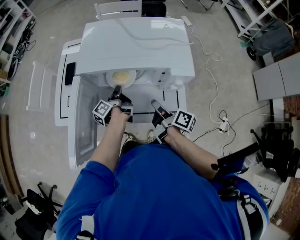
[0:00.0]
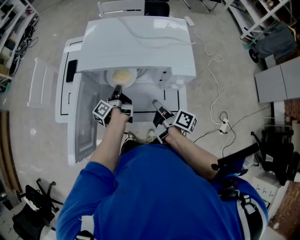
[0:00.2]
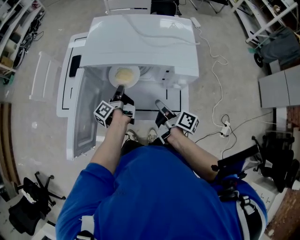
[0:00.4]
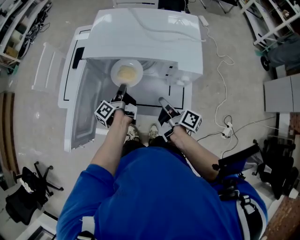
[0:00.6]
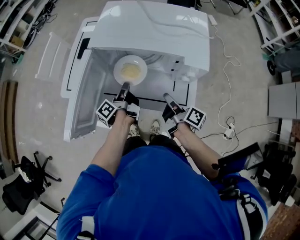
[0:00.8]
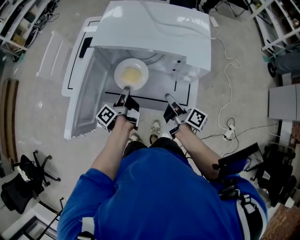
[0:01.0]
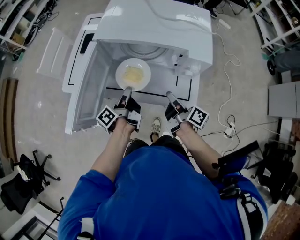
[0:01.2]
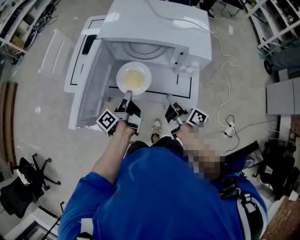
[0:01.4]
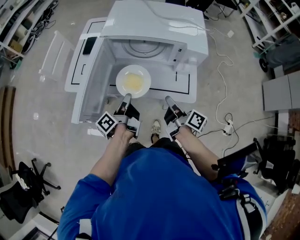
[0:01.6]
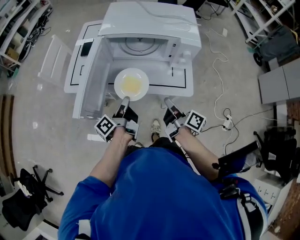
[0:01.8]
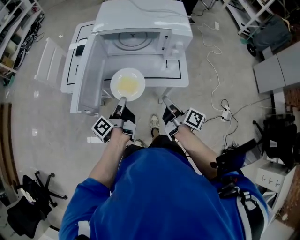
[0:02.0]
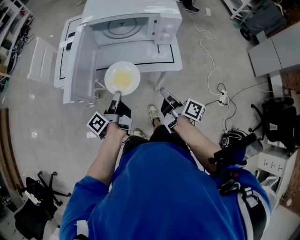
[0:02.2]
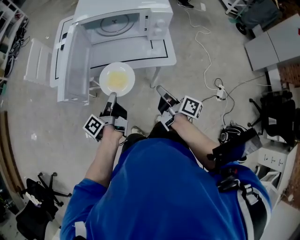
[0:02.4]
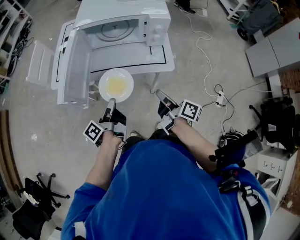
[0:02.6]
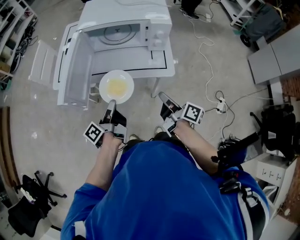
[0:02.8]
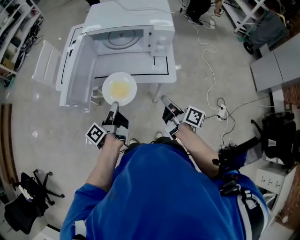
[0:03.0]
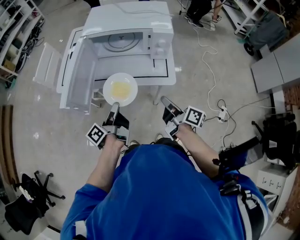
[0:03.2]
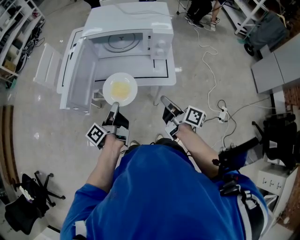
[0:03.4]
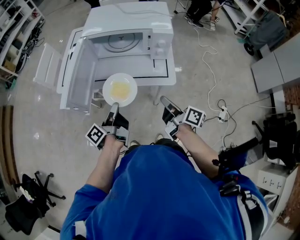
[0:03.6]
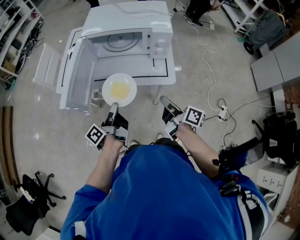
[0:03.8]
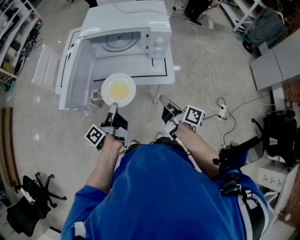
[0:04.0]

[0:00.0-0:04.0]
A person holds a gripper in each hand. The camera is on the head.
0:00.0 to 0:01.4: The left gripper changes place by some 15 cm.
0:01.4 to 0:02.6: The left gripper moves roughly 15 cm.

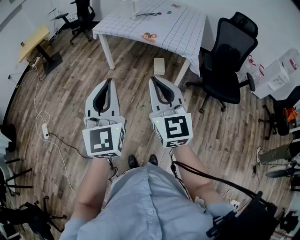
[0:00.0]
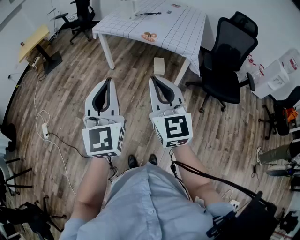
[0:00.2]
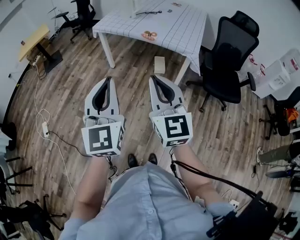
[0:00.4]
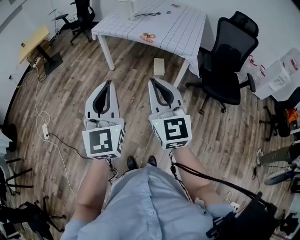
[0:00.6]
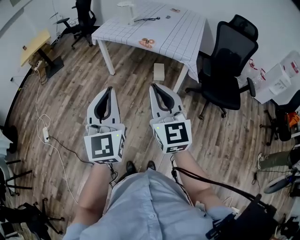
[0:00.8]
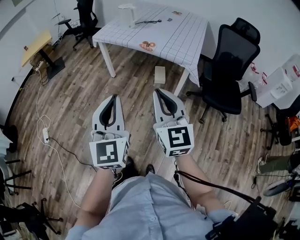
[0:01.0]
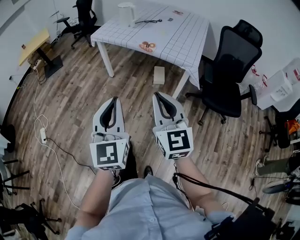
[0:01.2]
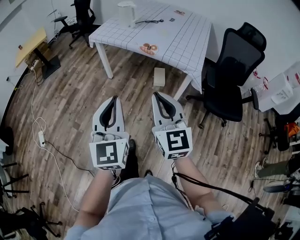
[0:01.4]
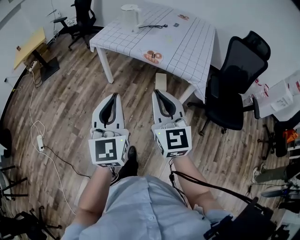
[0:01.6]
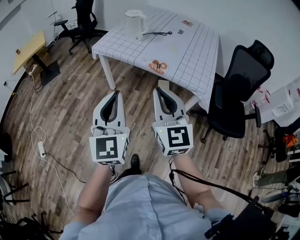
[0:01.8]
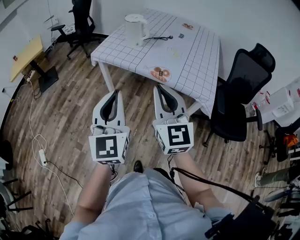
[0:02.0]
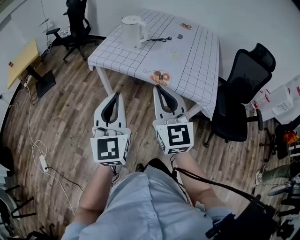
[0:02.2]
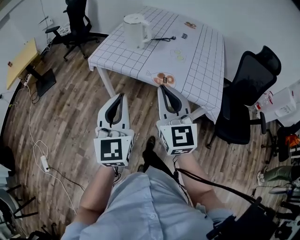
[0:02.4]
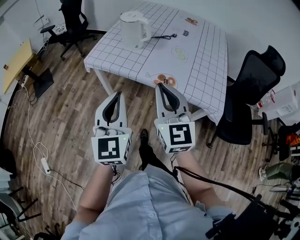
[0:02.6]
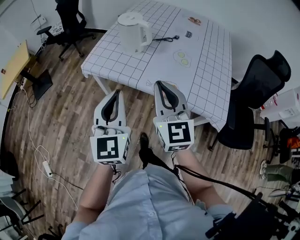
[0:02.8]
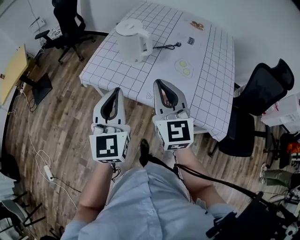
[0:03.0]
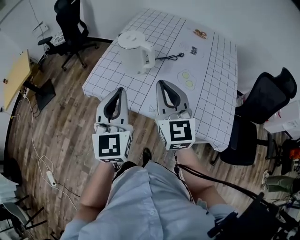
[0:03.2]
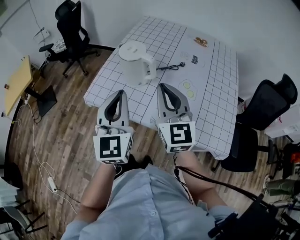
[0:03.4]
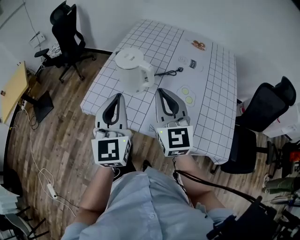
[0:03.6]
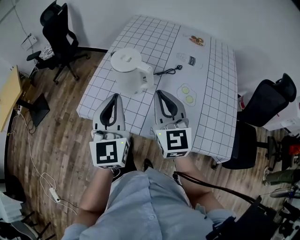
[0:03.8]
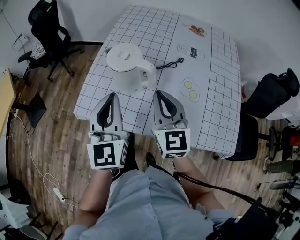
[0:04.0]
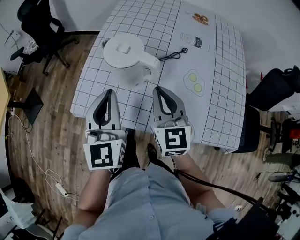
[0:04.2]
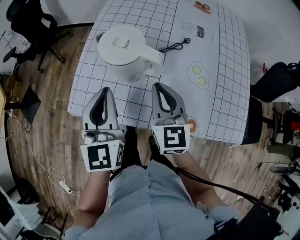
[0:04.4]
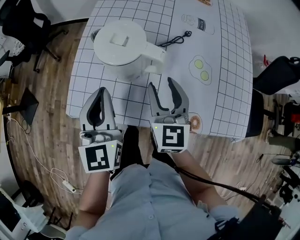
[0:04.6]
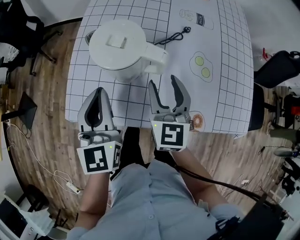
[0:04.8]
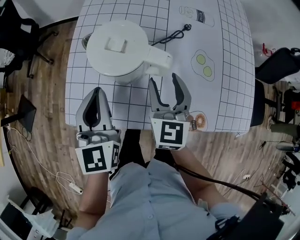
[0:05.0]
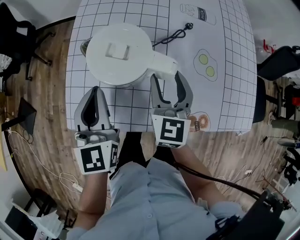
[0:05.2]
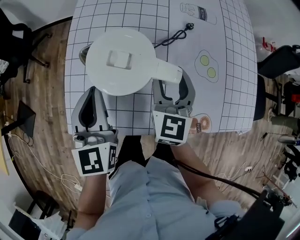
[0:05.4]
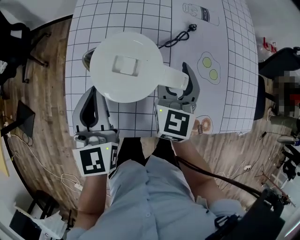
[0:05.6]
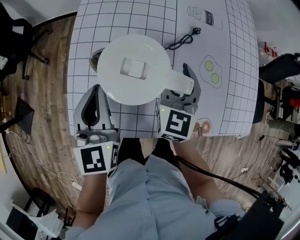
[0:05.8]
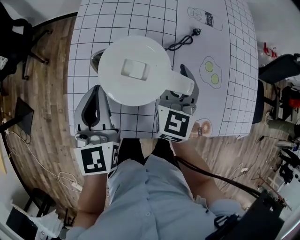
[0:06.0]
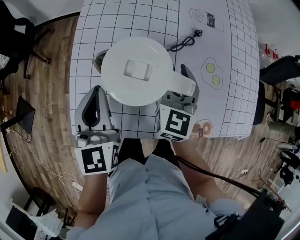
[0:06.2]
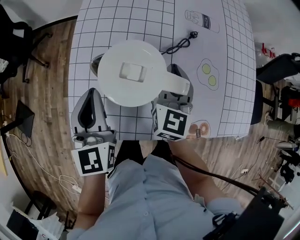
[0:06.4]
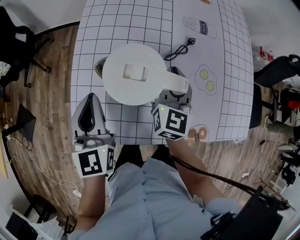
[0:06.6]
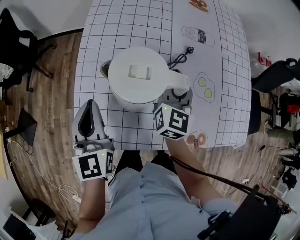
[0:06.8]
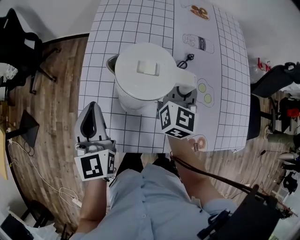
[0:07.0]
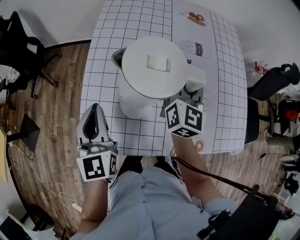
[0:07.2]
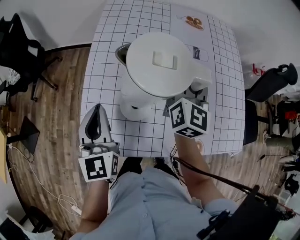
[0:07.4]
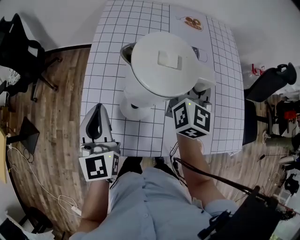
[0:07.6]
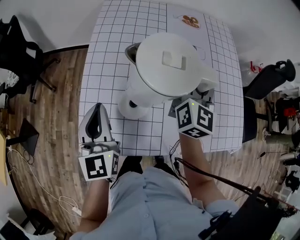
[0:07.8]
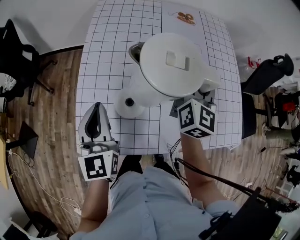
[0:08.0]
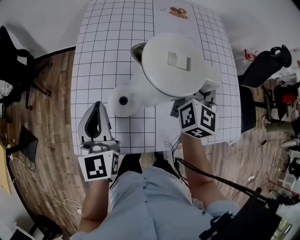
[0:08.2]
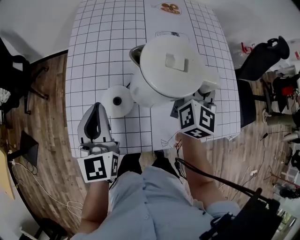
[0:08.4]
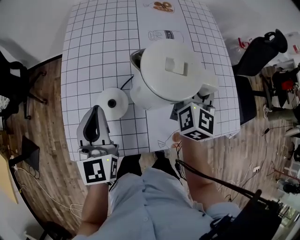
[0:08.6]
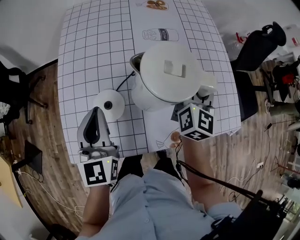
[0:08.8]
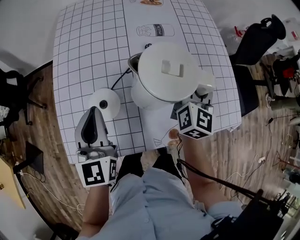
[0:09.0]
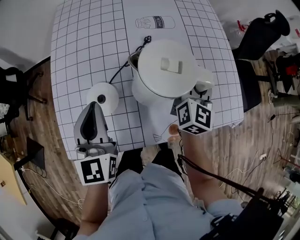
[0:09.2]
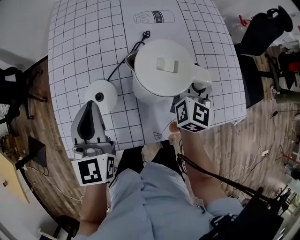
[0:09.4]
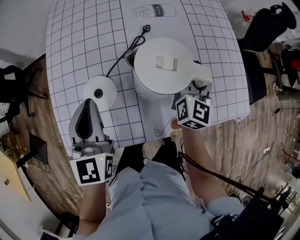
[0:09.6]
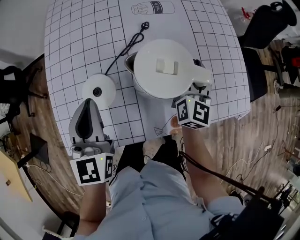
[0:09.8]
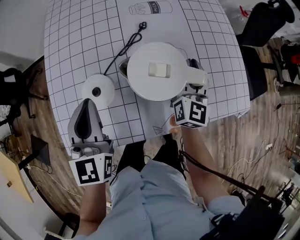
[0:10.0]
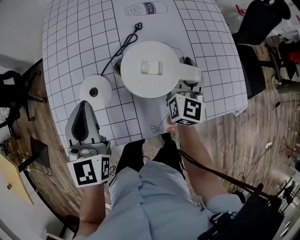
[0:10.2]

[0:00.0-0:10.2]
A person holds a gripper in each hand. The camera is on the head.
0:00.0 to 0:01.4: Both grippers travel together forward and downward, approximately 10 cm.
0:01.4 to 0:03.0: Both grippers are carried forward, roughly 50 cm.
0:03.0 to 0:04.4: The left gripper is displaced forward by about 20 cm. The right gripper is displaced forward and downward by about 20 cm.
0:04.4 to 0:05.8: The right gripper travels forward and downward by some 10 cm, swivels roughly 30 degrees, and opens up. The left gripper shifts some 15 cm forward, downward and to the left.
0:05.8 to 0:07.2: The right gripper moves upward and forward, approximately 10 cm, swivels approximately 20 degrees, and closes its fingers. Meanwhile the left gripper travels upward by roughly 5 cm.
0:07.2 to 0:08.8: The left gripper is displaced to the right by some 10 cm; the right gripper travels to the right by about 20 cm.
0:08.8 to 0:10.2: The right gripper goes approximately 10 cm downward.

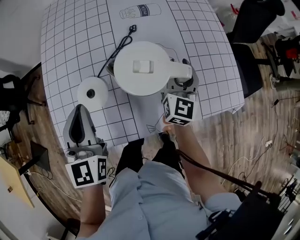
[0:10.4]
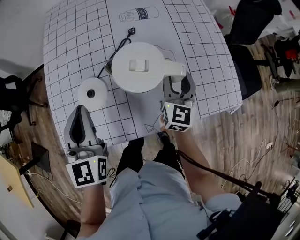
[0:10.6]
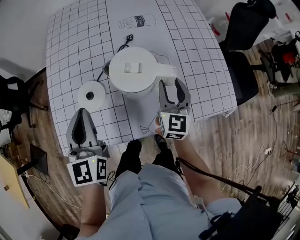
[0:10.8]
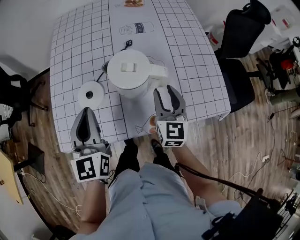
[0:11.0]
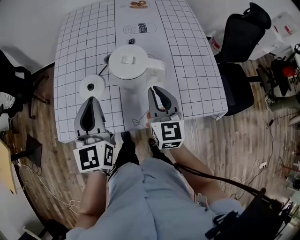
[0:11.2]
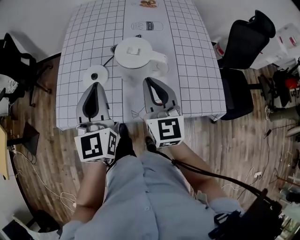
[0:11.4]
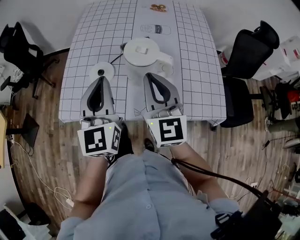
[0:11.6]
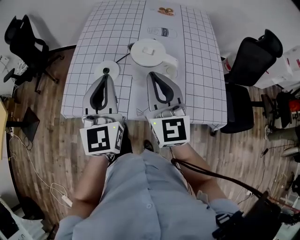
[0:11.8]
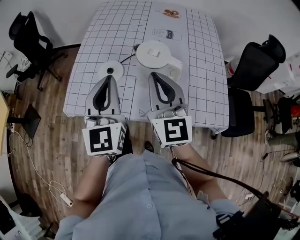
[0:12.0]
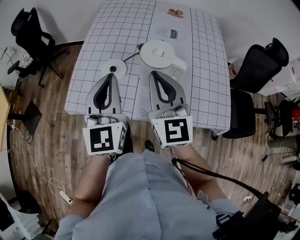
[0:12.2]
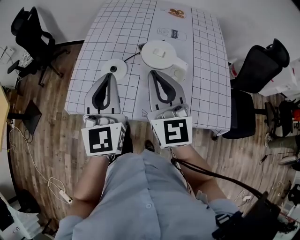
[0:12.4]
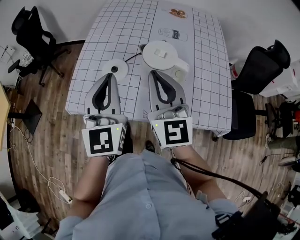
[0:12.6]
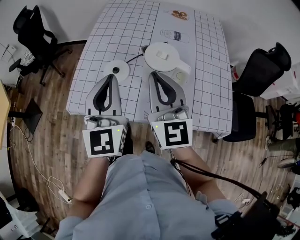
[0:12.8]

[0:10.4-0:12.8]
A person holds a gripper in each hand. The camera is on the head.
0:10.4 to 0:11.6: The left gripper goes about 15 cm backward, upward and to the right. The right gripper goes approximately 25 cm upward, backward and to the left, changes its angle by roughly 40 degrees, and closes up.
0:11.6 to 0:12.8: The right gripper changes place by roughly 5 cm.

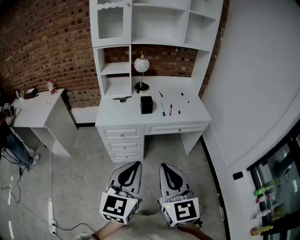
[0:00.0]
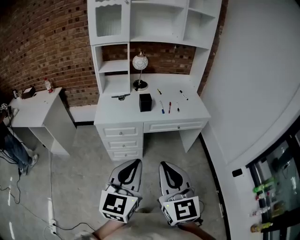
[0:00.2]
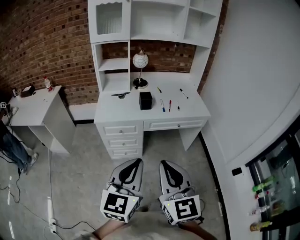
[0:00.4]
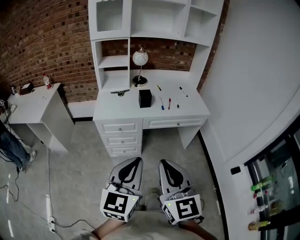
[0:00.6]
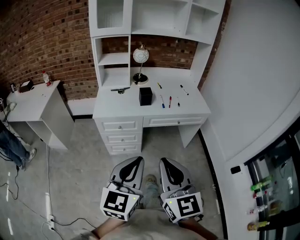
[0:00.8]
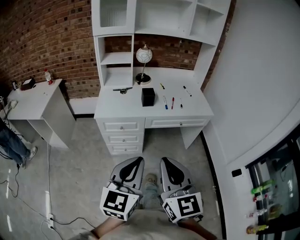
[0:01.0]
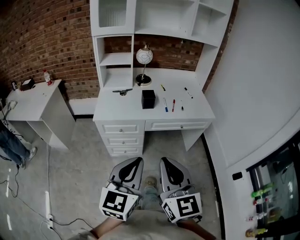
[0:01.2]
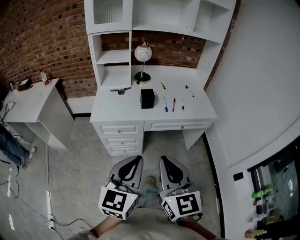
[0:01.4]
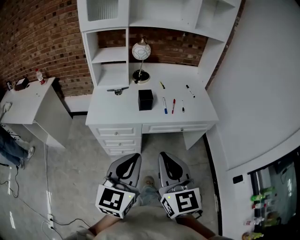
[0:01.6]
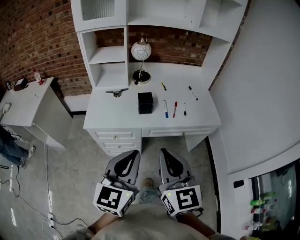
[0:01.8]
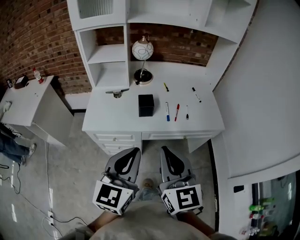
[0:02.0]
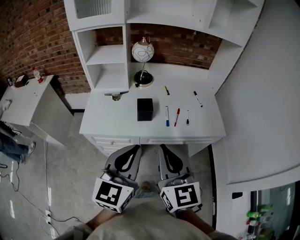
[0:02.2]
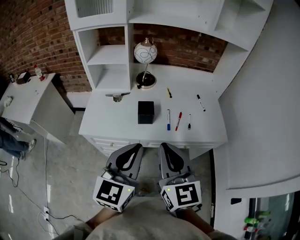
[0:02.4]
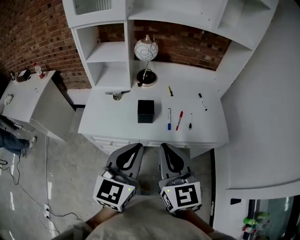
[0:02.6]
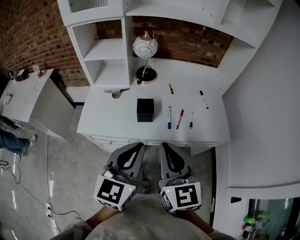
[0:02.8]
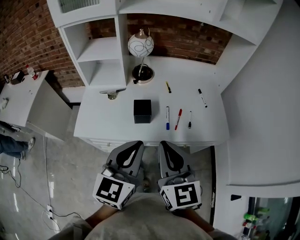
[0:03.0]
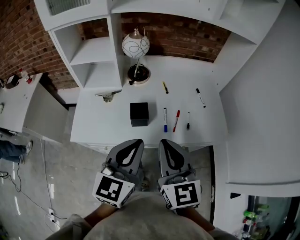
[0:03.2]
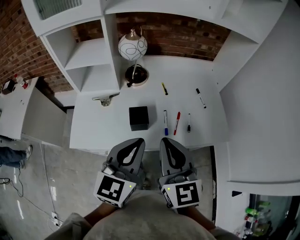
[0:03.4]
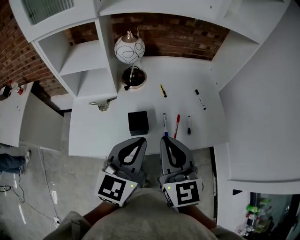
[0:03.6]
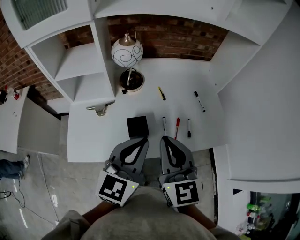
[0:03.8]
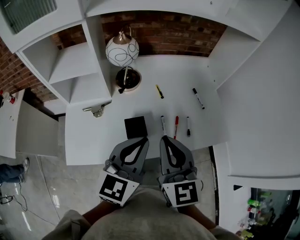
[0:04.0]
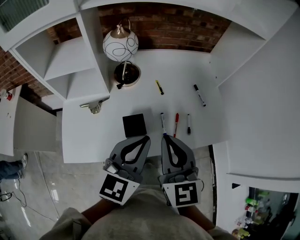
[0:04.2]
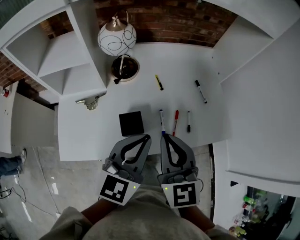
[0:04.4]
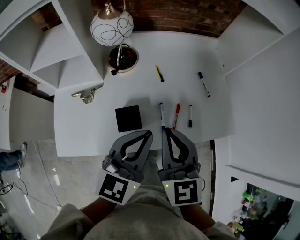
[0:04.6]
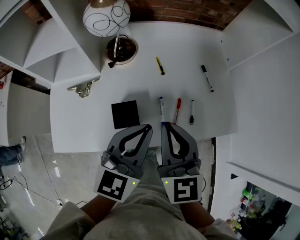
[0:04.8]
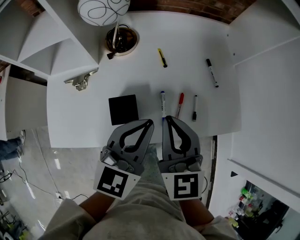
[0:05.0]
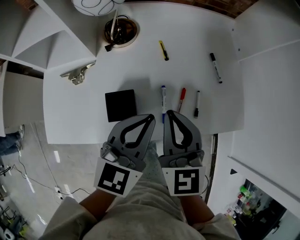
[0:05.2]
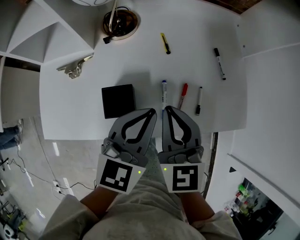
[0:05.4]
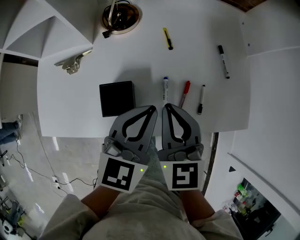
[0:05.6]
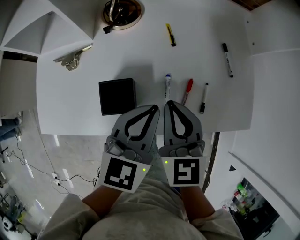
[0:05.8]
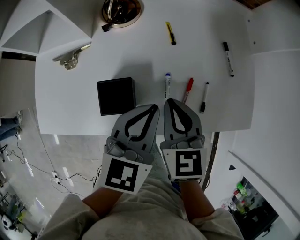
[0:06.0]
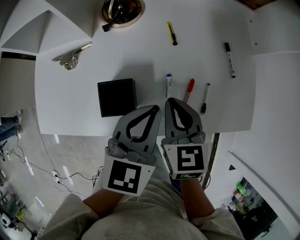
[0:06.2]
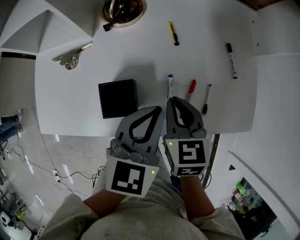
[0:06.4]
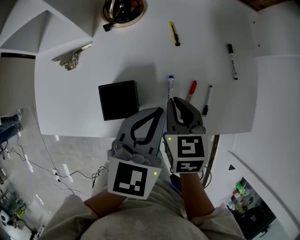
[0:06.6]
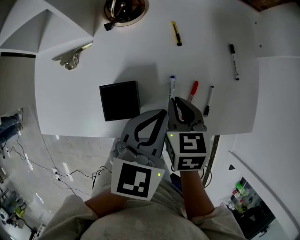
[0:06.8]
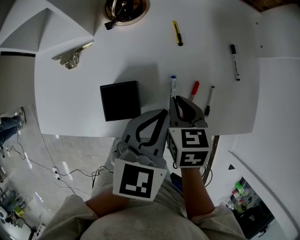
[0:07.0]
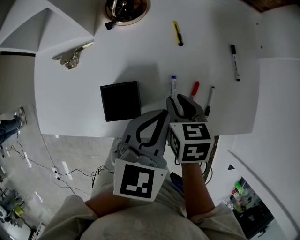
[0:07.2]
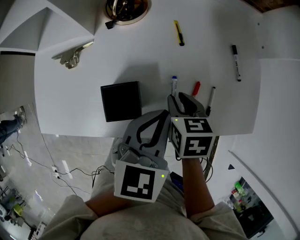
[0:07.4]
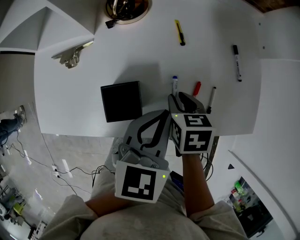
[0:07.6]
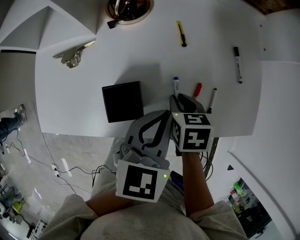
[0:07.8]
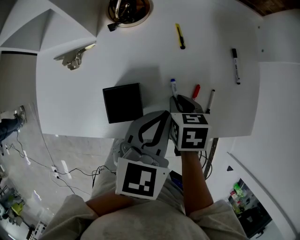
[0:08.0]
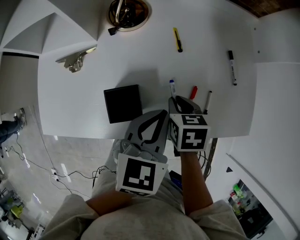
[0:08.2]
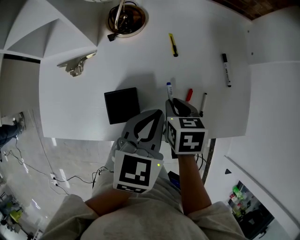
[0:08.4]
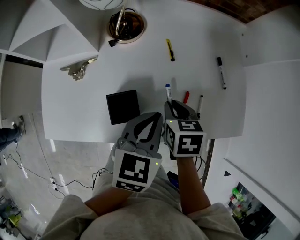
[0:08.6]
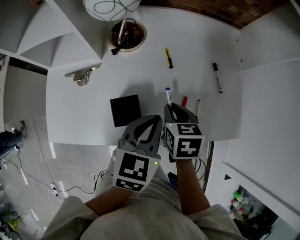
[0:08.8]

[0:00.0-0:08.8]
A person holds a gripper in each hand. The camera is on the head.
0:00.0 to 0:01.4: The two grippers go some 10 cm forward.
0:01.4 to 0:03.0: Both grippers move forward, about 30 cm.
0:03.0 to 0:04.4: Both grippers travel together forward, some 15 cm.
0:04.4 to 0:05.8: The two grippers go some 15 cm downward and forward.
0:05.8 to 0:07.4: The right gripper moves downward, approximately 10 cm, and tips its fingers downward by some 30 degrees.
0:07.4 to 0:08.8: The right gripper shifts about 5 cm upward.
